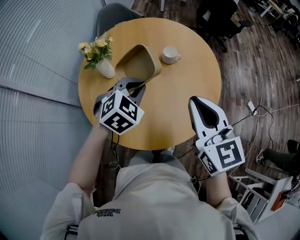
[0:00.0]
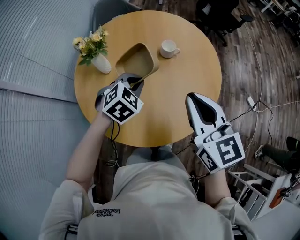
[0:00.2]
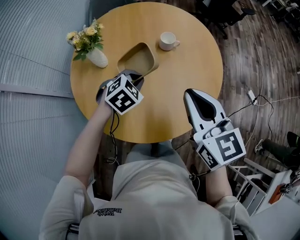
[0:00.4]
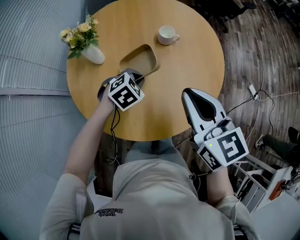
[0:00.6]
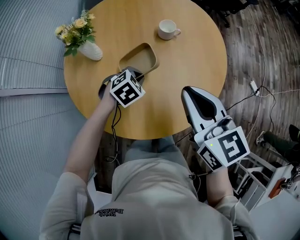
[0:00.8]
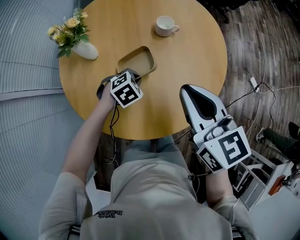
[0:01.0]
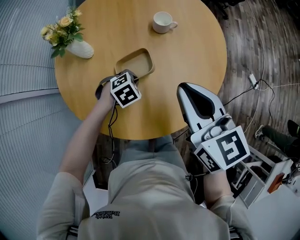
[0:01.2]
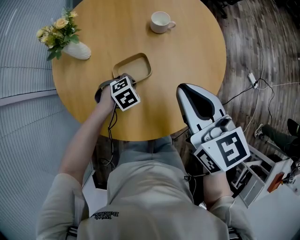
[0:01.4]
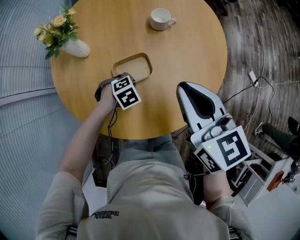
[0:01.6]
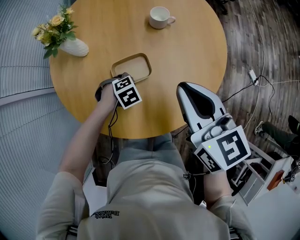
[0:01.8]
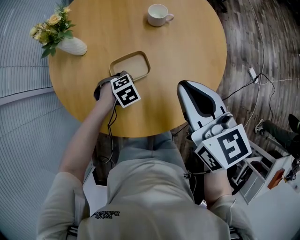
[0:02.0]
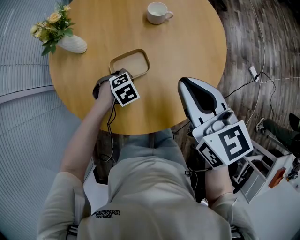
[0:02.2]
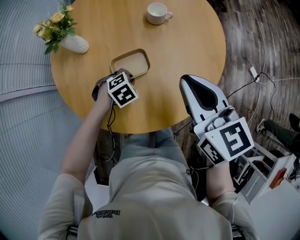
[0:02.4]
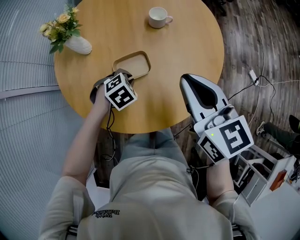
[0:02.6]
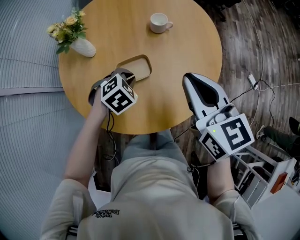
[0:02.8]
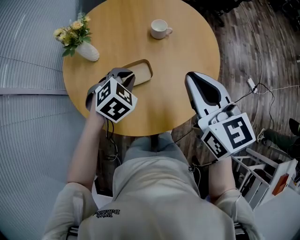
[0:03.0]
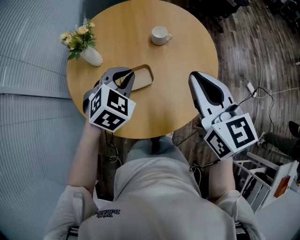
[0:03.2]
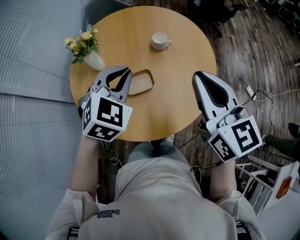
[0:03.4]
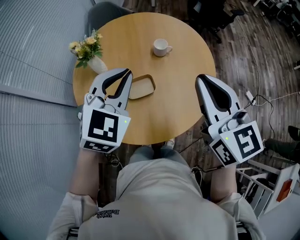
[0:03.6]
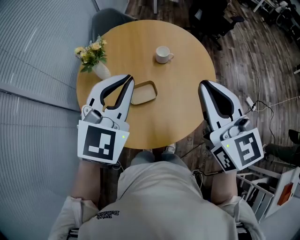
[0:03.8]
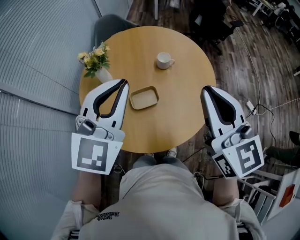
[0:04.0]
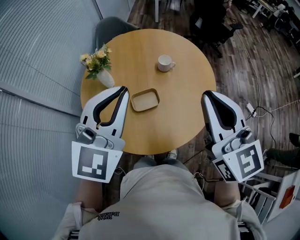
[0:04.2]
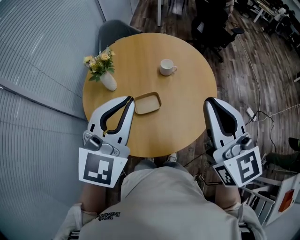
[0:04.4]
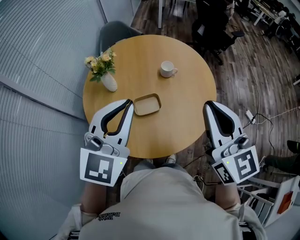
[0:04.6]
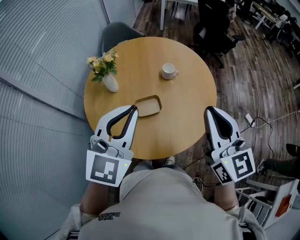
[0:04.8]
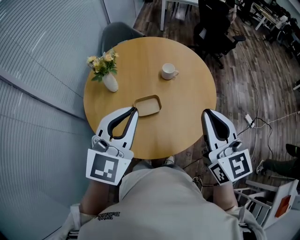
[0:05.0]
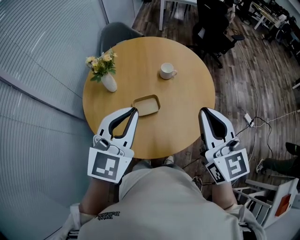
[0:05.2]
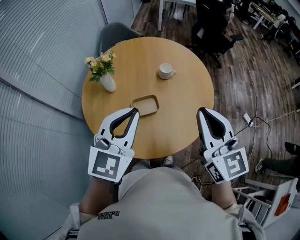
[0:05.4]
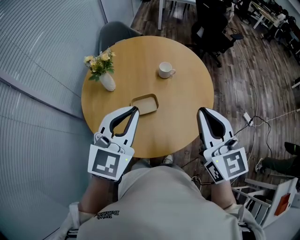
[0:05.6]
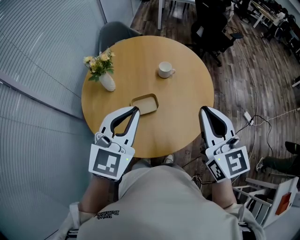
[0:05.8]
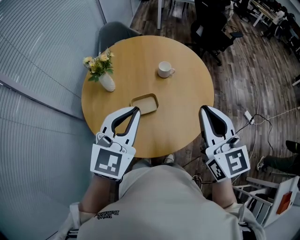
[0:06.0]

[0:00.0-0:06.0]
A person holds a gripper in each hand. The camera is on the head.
0:00.0 to 0:01.6: The right gripper goes approximately 10 cm downward. Meanwhile the left gripper heads downward, covering roughly 30 cm, and points its fingers roughly 30 degrees further downward.
0:01.6 to 0:03.0: The left gripper shifts approximately 20 cm upward, and turns by about 30 degrees. The right gripper travels upward by roughly 5 cm.
0:03.0 to 0:04.4: The right gripper goes about 15 cm upward and backward, and changes its angle by about 20 degrees; the left gripper shifts about 30 cm upward, and tilts its fingers approximately 50 degrees upward.
0:04.4 to 0:06.0: The grippers both shift downward by approximately 5 cm.

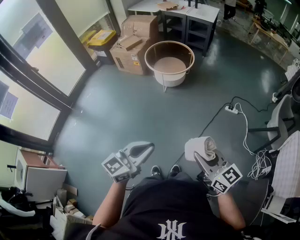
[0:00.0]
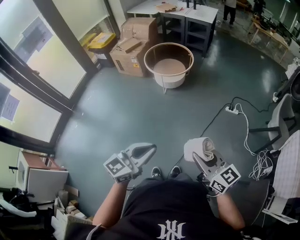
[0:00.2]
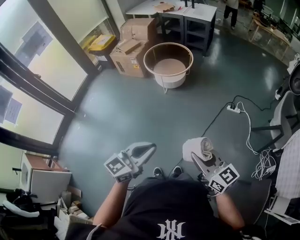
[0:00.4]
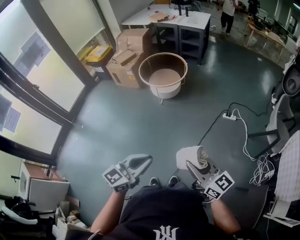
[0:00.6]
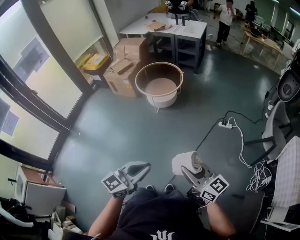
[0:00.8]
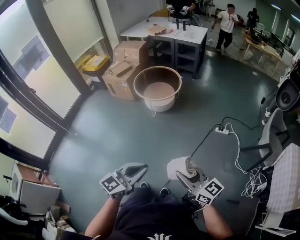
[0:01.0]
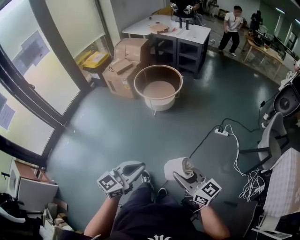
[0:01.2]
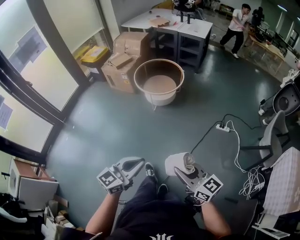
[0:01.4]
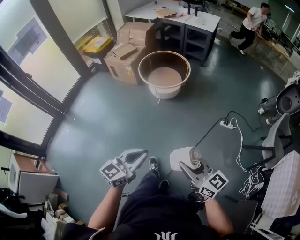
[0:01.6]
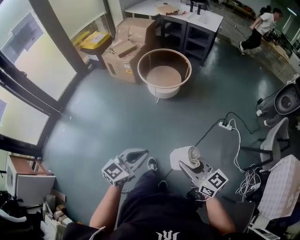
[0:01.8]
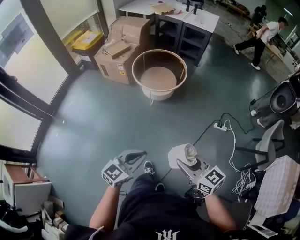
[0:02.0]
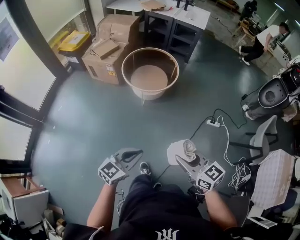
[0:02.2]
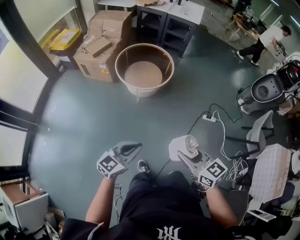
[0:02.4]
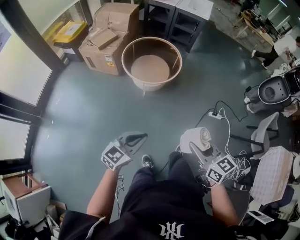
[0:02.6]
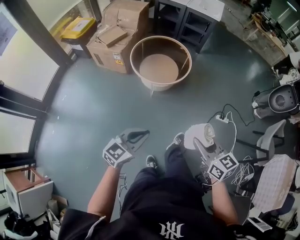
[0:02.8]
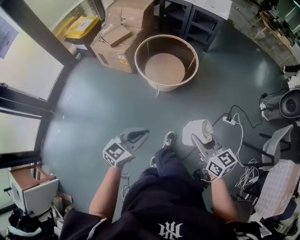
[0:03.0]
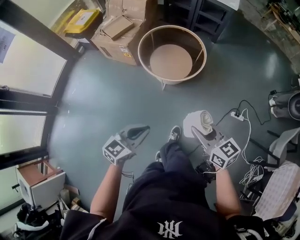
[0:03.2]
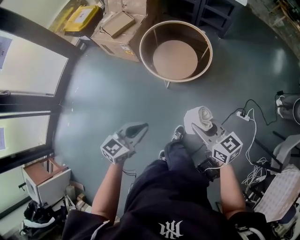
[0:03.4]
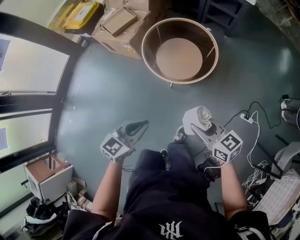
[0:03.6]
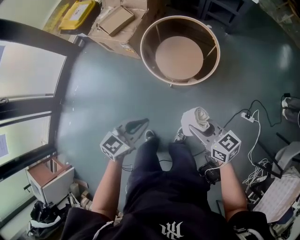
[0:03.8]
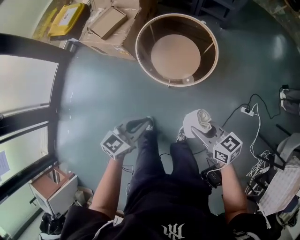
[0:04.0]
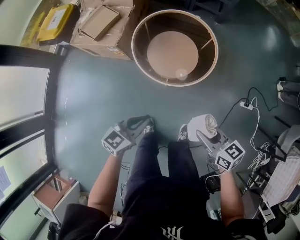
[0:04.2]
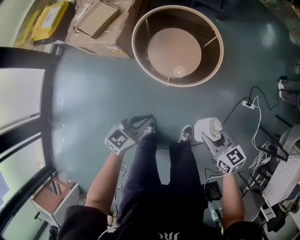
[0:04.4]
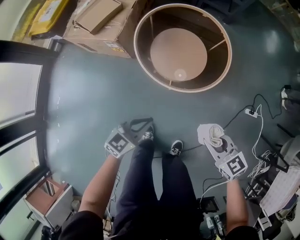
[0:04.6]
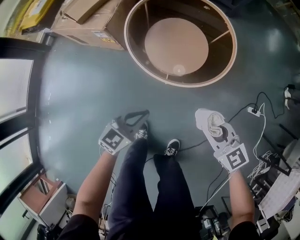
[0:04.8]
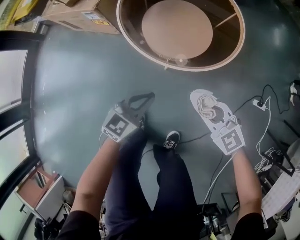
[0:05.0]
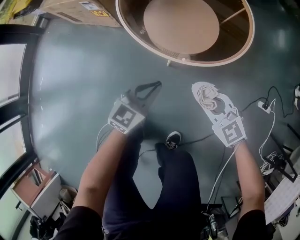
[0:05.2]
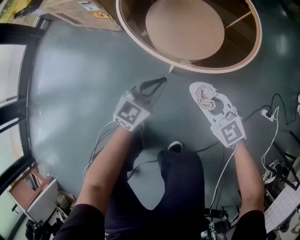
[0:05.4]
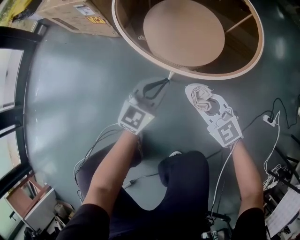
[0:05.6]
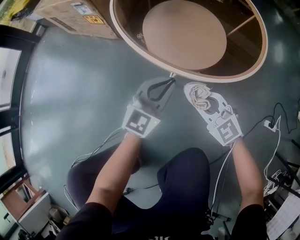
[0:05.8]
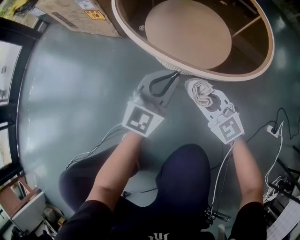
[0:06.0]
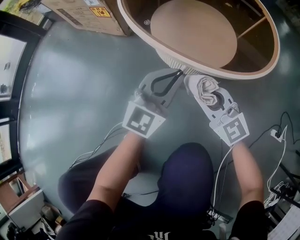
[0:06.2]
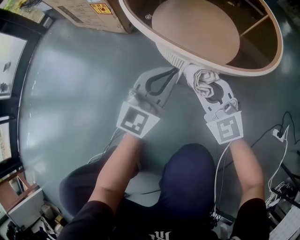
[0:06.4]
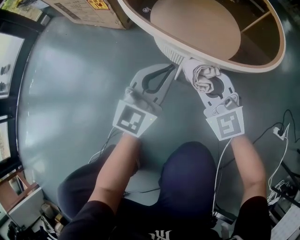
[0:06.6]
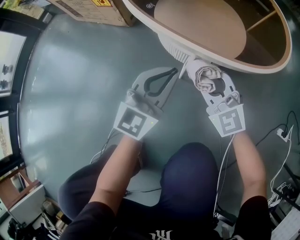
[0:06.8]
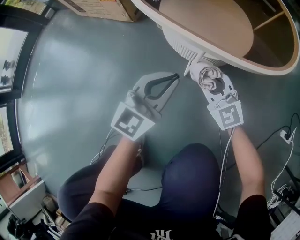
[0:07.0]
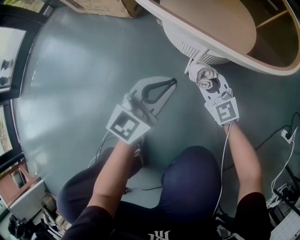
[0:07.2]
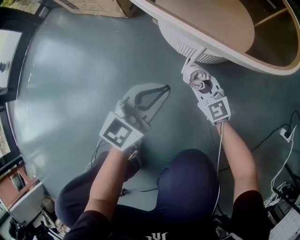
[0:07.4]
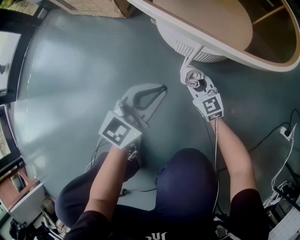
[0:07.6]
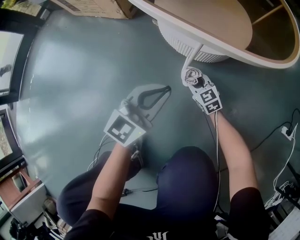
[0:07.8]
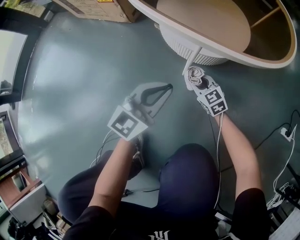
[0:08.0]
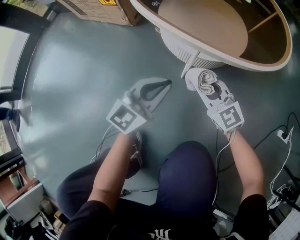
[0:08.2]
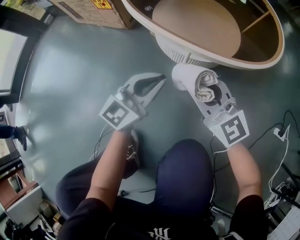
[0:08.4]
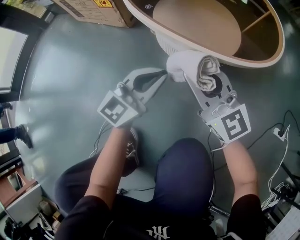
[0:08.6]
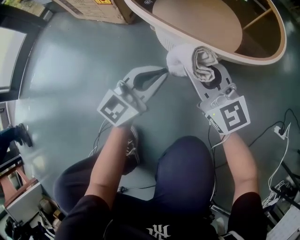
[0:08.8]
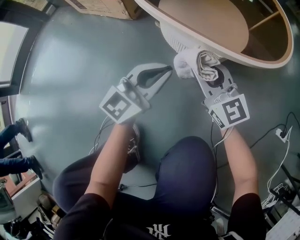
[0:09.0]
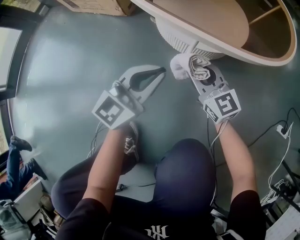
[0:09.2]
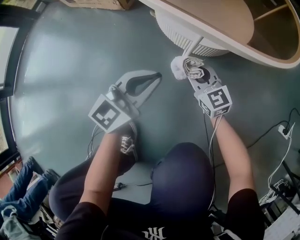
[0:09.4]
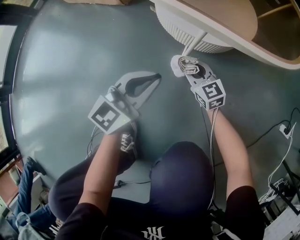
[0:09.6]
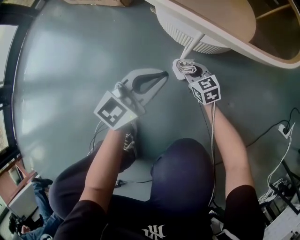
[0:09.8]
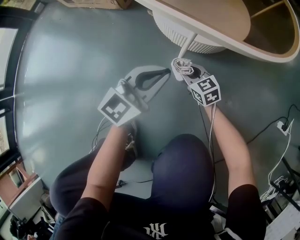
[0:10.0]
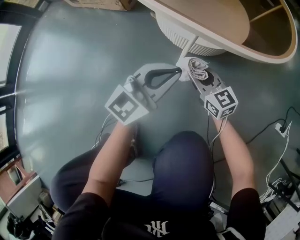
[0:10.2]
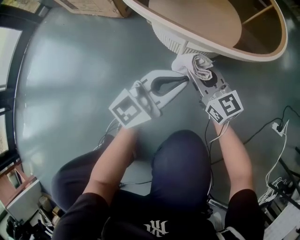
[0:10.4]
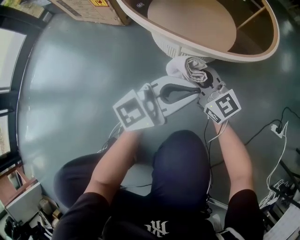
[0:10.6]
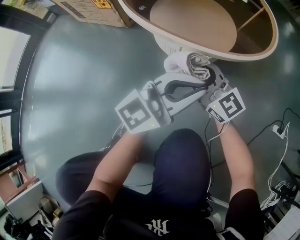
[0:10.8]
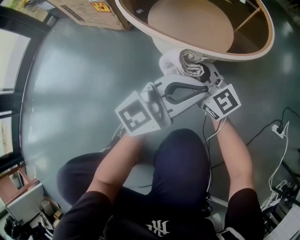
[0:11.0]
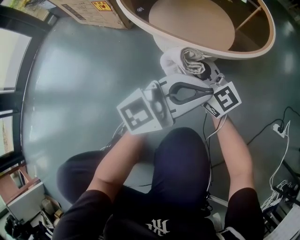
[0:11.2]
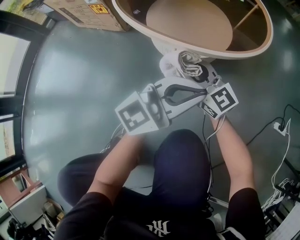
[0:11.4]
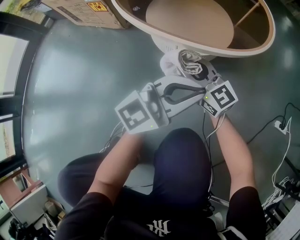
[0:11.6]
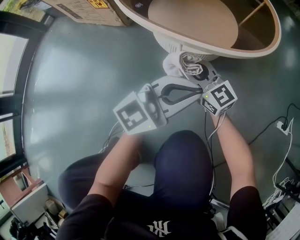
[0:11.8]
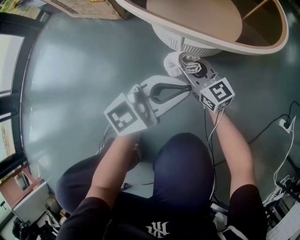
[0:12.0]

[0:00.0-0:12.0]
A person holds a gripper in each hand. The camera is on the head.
0:00.0 to 0:01.6: The left gripper heads forward and to the right, covering some 15 cm, while the right gripper is displaced forward by roughly 10 cm.
0:01.6 to 0:03.0: The two grippers go roughly 30 cm forward.
0:03.0 to 0:04.4: The grippers both shift forward and downward by roughly 35 cm.
0:04.4 to 0:06.0: The two grippers go about 40 cm downward. The right gripper rolls counterclockwise, seen from behind, by approximately 50 degrees. Meanwhile the left gripper turns by some 40 degrees.
0:06.0 to 0:07.6: The right gripper is displaced downward by roughly 20 cm, while the left gripper shifts some 15 cm downward, backward and to the left.
0:07.6 to 0:09.0: The right gripper goes up and down, roughly 35 cm each way, reversing 2 times; the left gripper heads upward, covering roughly 5 cm.
0:09.0 to 0:10.4: The left gripper is displaced to the right by approximately 5 cm, and goes downward and returns, roughly 5 cm each way; the right gripper moves about 30 cm downward and comes back.
0:10.4 to 0:12.0: The right gripper reaches some 10 cm upward, then returns, while the left gripper reaches about 10 cm upward, then returns.

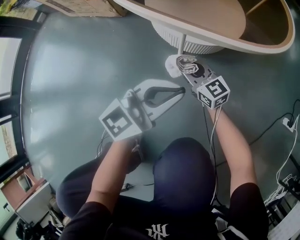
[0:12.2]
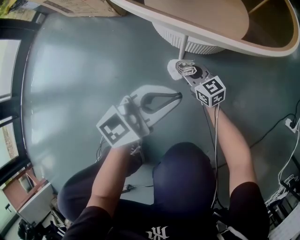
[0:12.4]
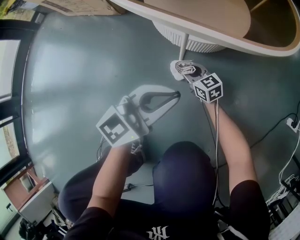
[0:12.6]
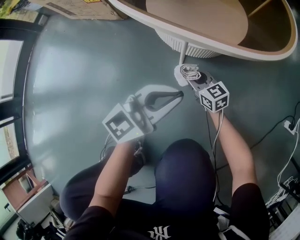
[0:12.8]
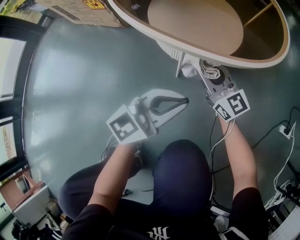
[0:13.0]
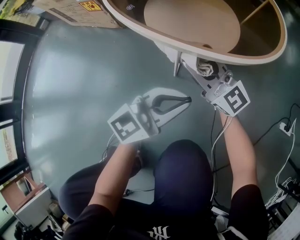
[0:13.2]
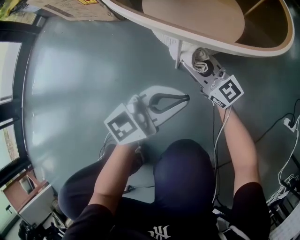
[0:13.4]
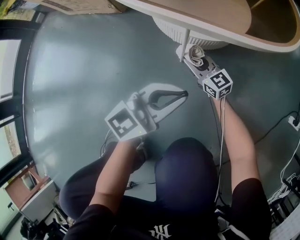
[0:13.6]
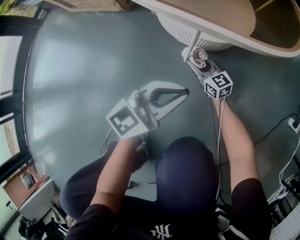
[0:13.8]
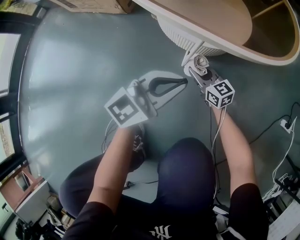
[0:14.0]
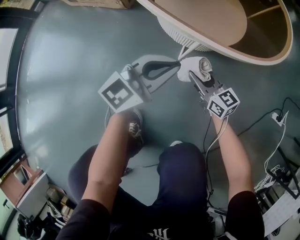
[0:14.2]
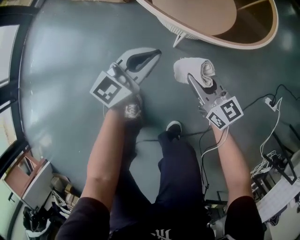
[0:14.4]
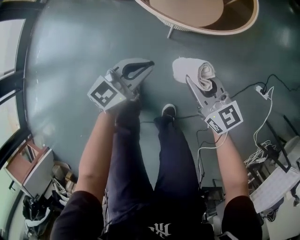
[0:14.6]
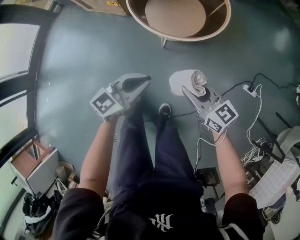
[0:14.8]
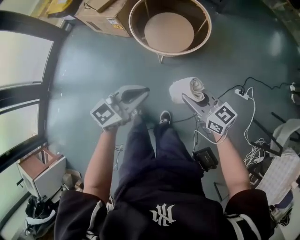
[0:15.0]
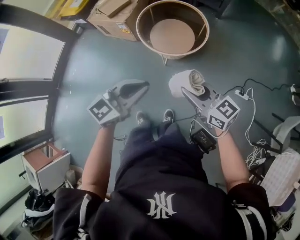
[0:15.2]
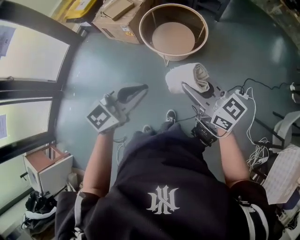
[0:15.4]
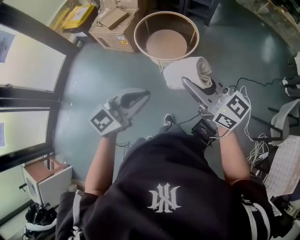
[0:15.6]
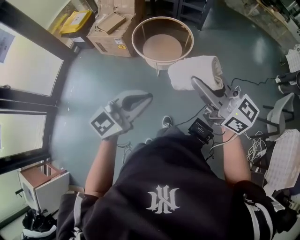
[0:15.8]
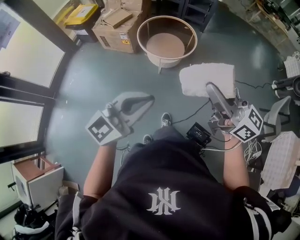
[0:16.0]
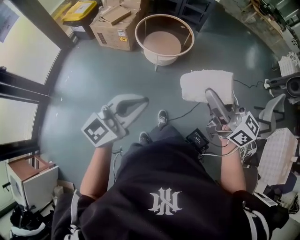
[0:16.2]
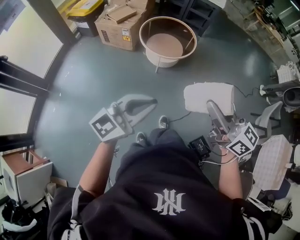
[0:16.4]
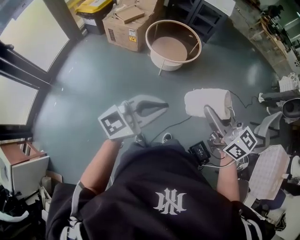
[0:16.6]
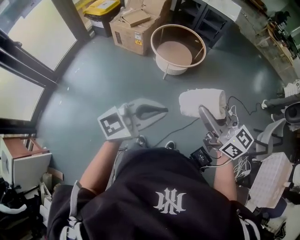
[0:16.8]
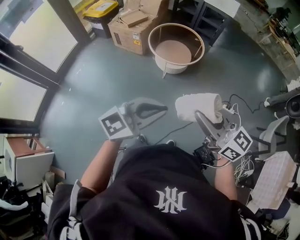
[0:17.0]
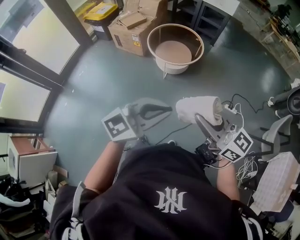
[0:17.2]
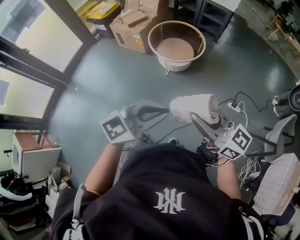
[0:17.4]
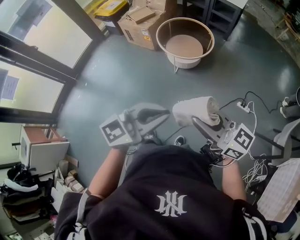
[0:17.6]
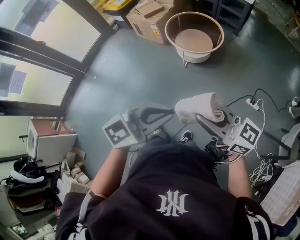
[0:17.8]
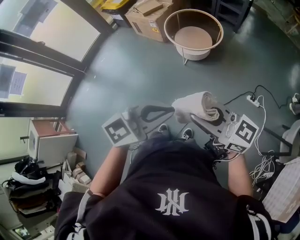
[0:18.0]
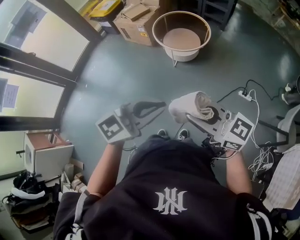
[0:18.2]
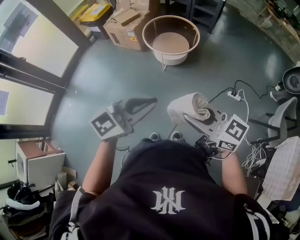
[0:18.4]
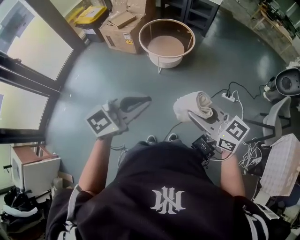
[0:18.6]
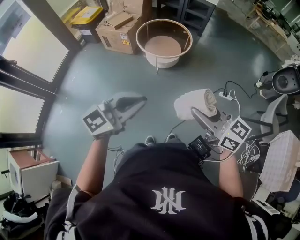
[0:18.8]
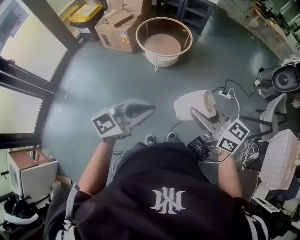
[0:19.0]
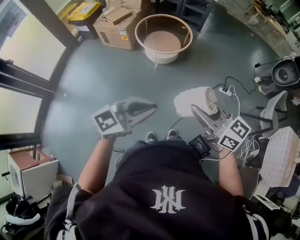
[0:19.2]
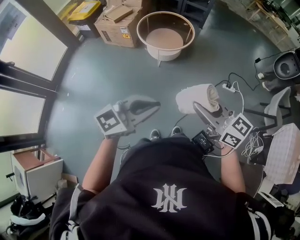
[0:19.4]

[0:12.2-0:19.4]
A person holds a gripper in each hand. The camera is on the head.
0:12.2 to 0:13.6: The right gripper goes up and down, approximately 30 cm each way, reversing 2 times.
0:13.6 to 0:15.0: Both grippers travel together upward, roughly 60 cm.
0:15.0 to 0:16.6: The right gripper goes some 50 cm upward and backward; the left gripper heads backward and upward, covering approximately 40 cm, and swivels about 20 degrees.
0:16.6 to 0:18.0: The left gripper ends up about 20 cm from where it was. The right gripper shifts by about 15 cm, and turns by about 30 degrees.
0:18.0 to 0:19.4: The right gripper ends up approximately 5 cm from where it was, and swivels roughly 30 degrees; the left gripper moves about 10 cm.
